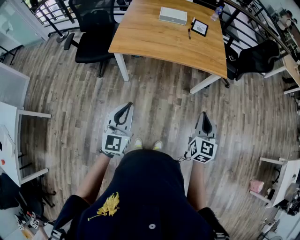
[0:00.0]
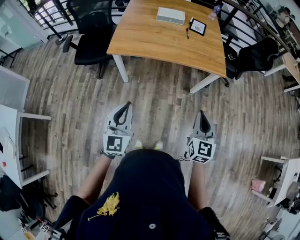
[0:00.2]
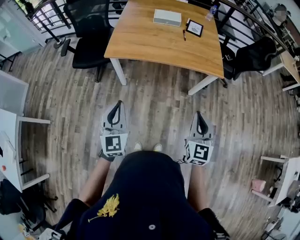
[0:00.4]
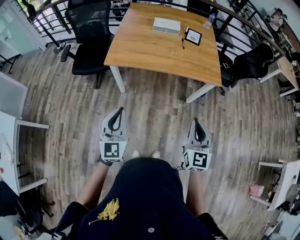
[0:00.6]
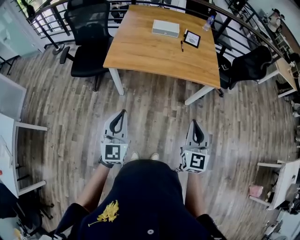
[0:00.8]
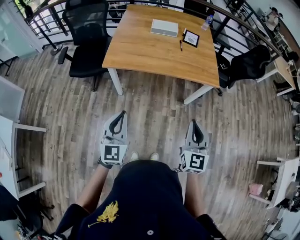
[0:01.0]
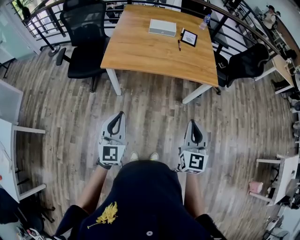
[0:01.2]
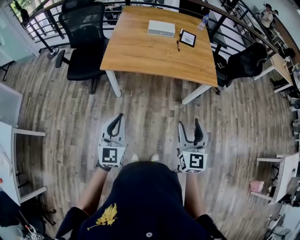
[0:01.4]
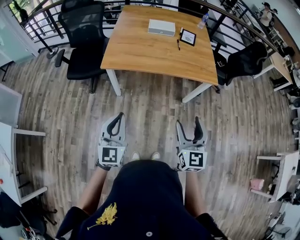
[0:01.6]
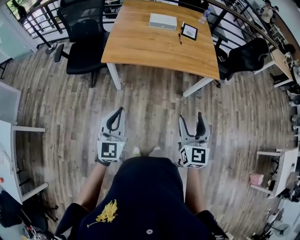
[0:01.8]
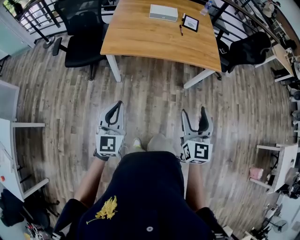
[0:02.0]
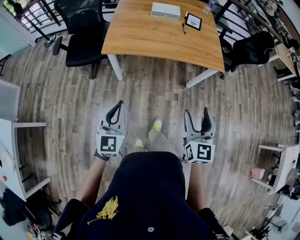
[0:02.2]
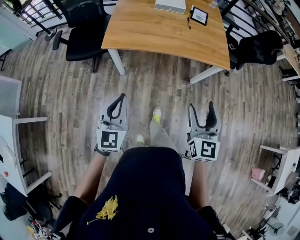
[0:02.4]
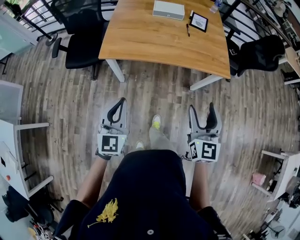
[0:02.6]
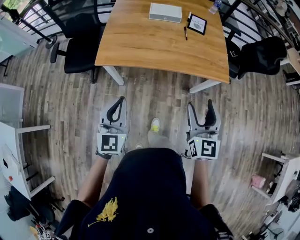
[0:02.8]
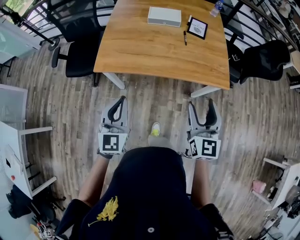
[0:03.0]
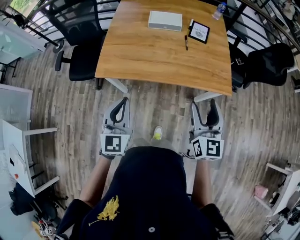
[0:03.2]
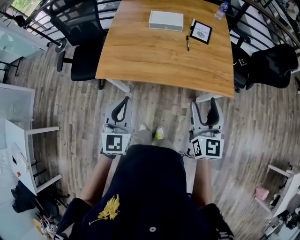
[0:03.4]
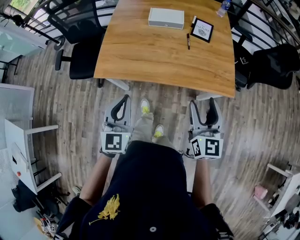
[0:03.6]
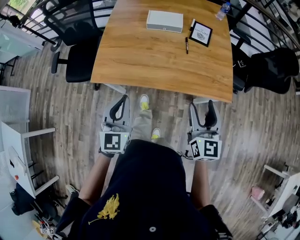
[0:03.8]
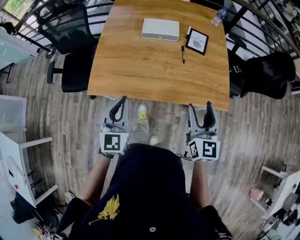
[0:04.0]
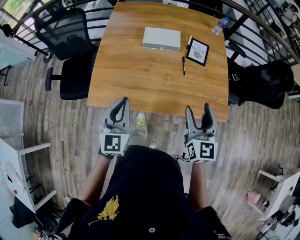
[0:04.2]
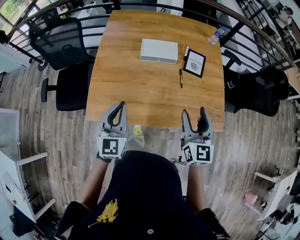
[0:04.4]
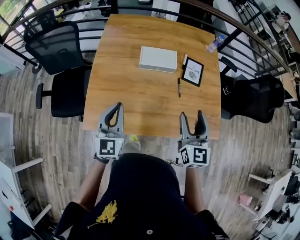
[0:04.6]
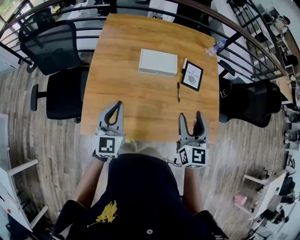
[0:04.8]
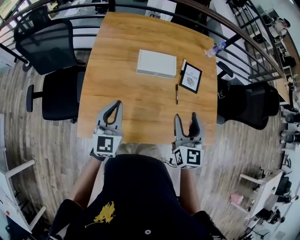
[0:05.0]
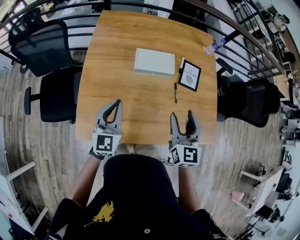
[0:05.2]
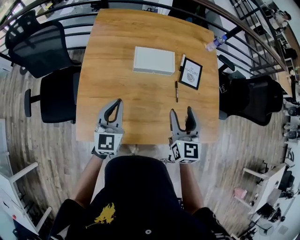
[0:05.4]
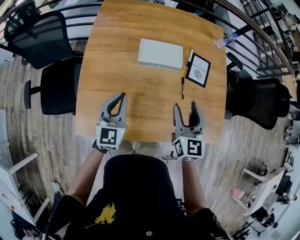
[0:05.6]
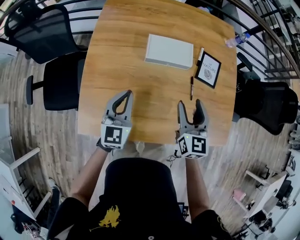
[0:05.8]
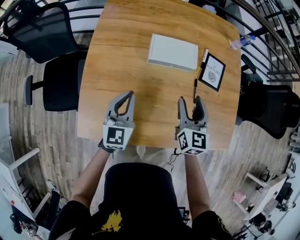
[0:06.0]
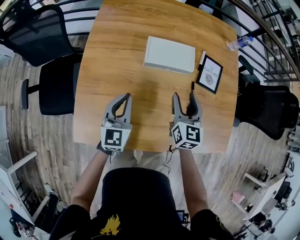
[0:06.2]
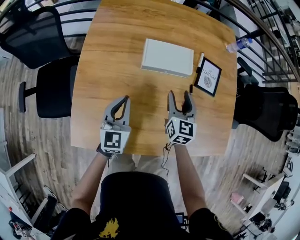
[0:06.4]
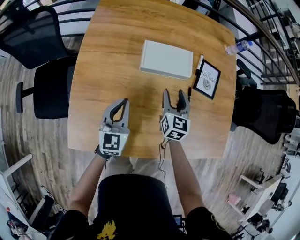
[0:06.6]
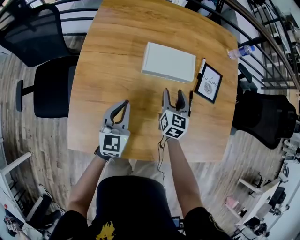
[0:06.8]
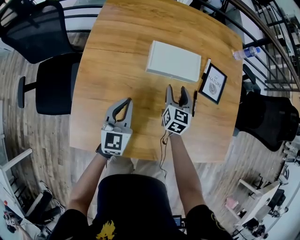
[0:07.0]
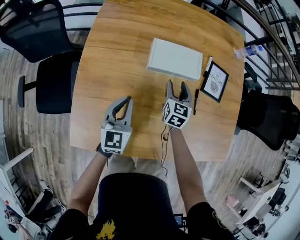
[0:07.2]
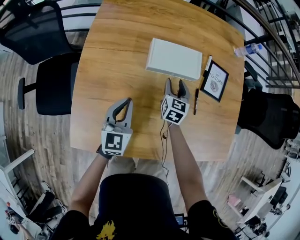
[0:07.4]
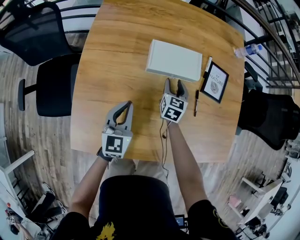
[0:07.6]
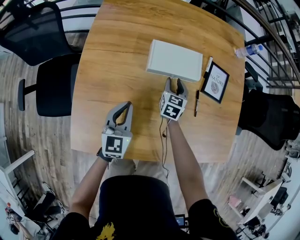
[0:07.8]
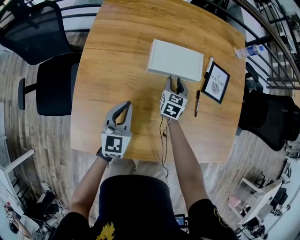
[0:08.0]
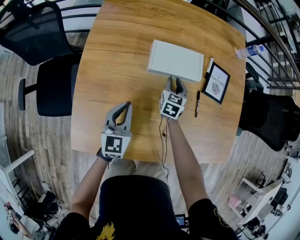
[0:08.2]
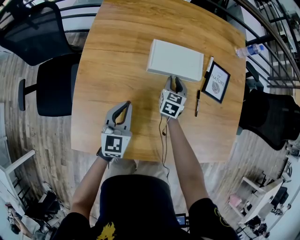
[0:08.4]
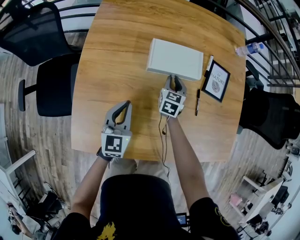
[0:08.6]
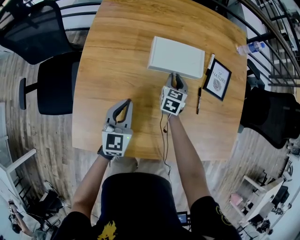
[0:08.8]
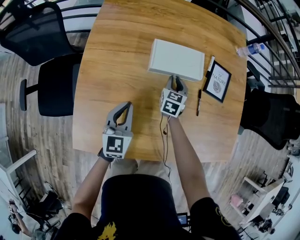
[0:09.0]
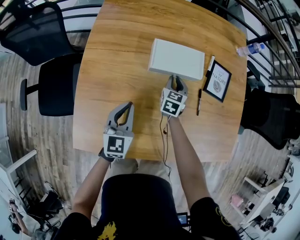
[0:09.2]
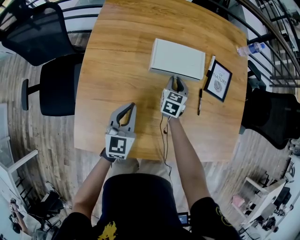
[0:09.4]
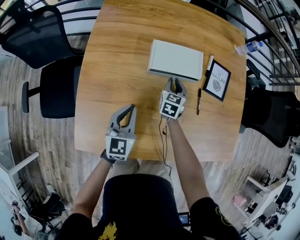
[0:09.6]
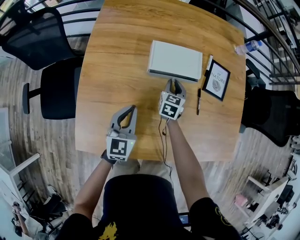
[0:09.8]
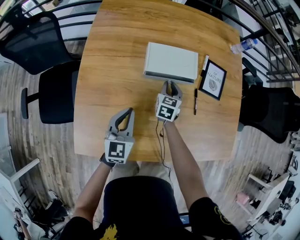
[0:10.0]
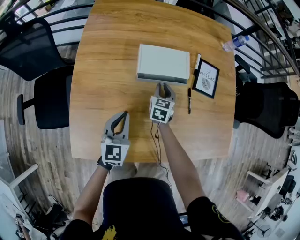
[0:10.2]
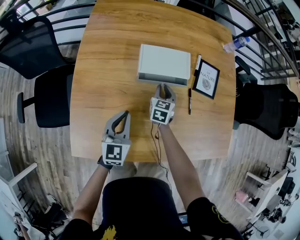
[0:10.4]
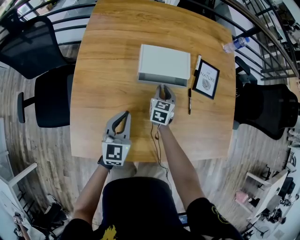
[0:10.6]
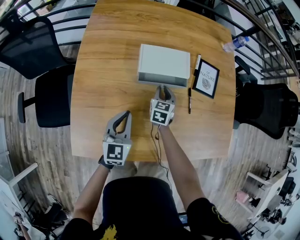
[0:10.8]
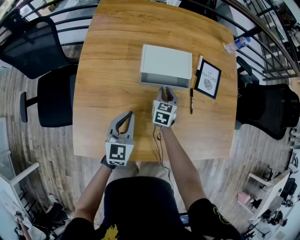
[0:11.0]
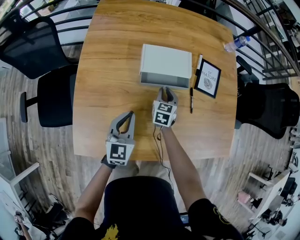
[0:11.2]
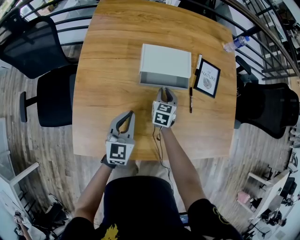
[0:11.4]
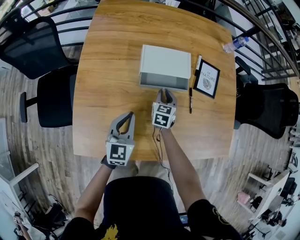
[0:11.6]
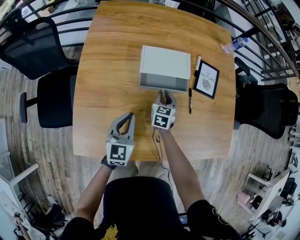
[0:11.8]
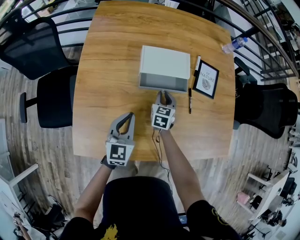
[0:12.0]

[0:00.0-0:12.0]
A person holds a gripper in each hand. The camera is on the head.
0:00.0 to 0:01.6: The right gripper travels to the left by roughly 10 cm, and opens its fingers.
0:01.6 to 0:03.0: The two grippers go roughly 25 cm forward.
0:03.0 to 0:04.4: The two grippers go some 30 cm forward.
0:04.4 to 0:06.0: The left gripper heads forward and downward, covering some 25 cm. Meanwhile the right gripper moves forward, downward and to the left, approximately 25 cm.
0:06.0 to 0:07.6: The right gripper goes about 25 cm downward and forward. Meanwhile the left gripper moves downward, approximately 5 cm.
0:07.6 to 0:09.0: The right gripper closes its fingers.
0:09.0 to 0:10.4: There are only small adjustments of the grippers.
0:10.4 to 0:12.0: The grippers make only small movements.

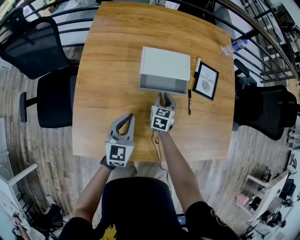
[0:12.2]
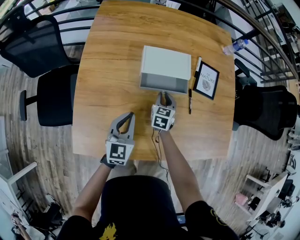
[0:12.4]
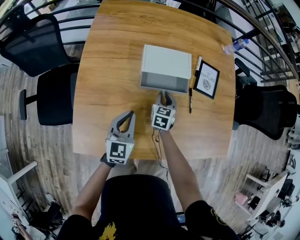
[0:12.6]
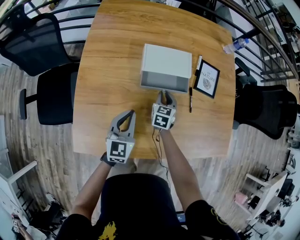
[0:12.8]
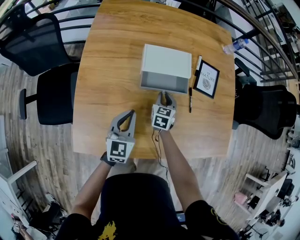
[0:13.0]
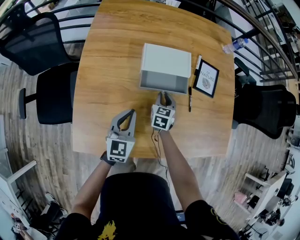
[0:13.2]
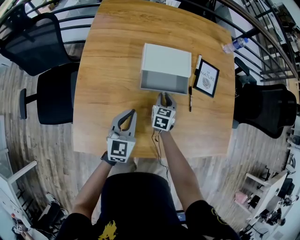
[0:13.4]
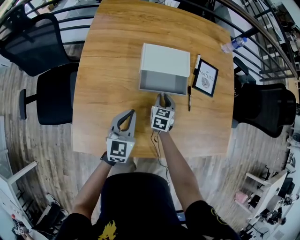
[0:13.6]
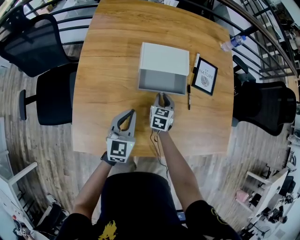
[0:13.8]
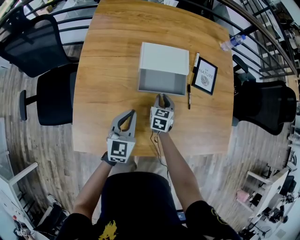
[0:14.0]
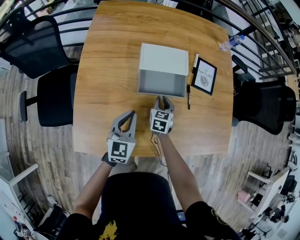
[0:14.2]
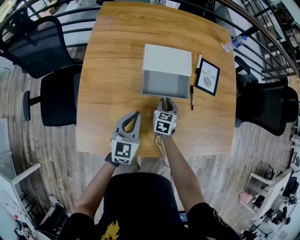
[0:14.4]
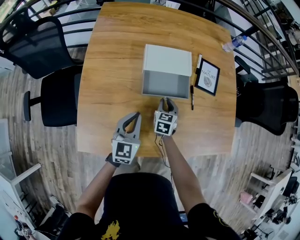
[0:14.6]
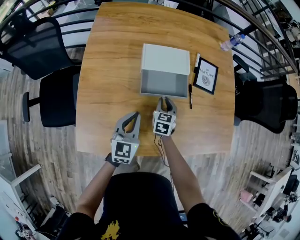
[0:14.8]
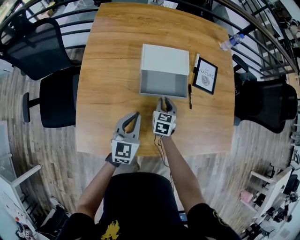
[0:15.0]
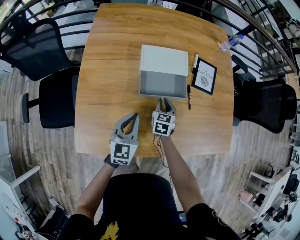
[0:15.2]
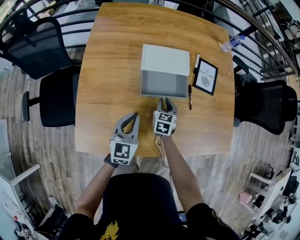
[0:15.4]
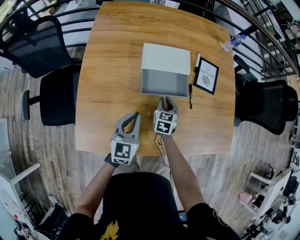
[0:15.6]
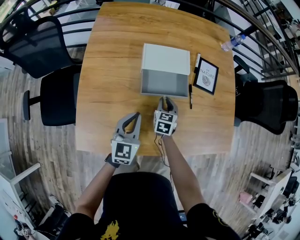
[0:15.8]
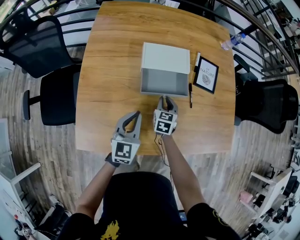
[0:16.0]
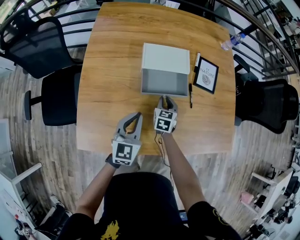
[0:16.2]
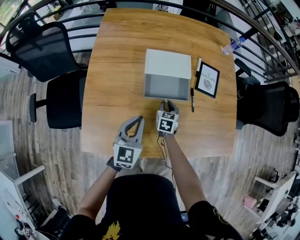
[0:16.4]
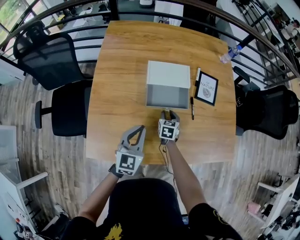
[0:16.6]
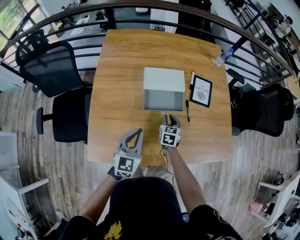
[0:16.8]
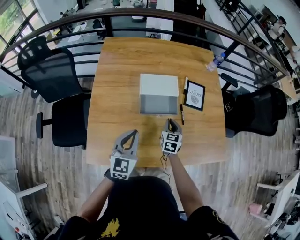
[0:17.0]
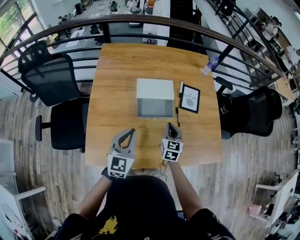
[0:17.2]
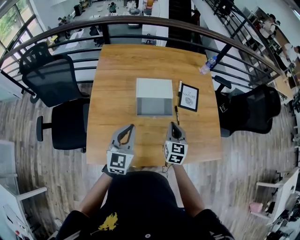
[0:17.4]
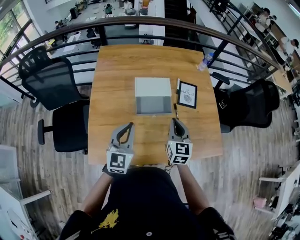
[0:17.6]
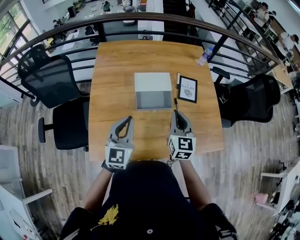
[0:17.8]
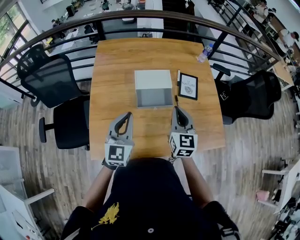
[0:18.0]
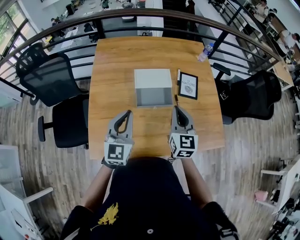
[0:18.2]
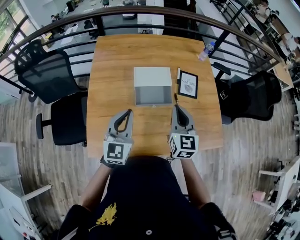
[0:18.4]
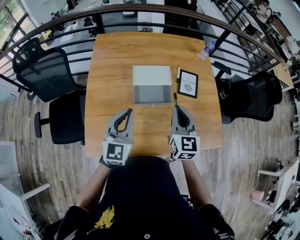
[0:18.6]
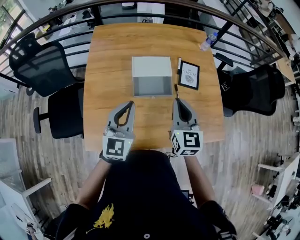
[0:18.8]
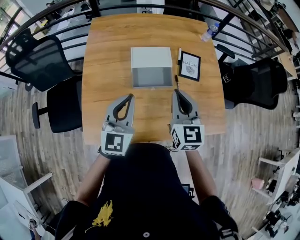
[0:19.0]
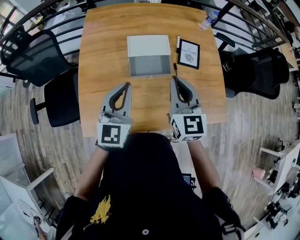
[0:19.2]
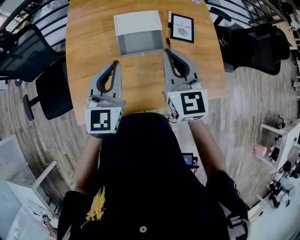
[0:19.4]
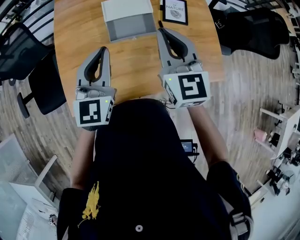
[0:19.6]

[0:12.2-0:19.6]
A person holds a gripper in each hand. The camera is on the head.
0:12.2 to 0:15.2: The grippers stay close to where they were, moving slightly.
0:15.2 to 0:16.6: The left gripper goes approximately 5 cm upward.
0:16.6 to 0:18.2: The right gripper moves upward, approximately 35 cm, points its fingers about 30 degrees further upward, and closes. Meanwhile the left gripper heads upward, covering about 15 cm.
0:18.2 to 0:19.6: There are only small adjustments of the grippers.

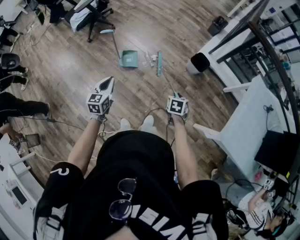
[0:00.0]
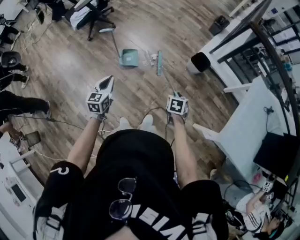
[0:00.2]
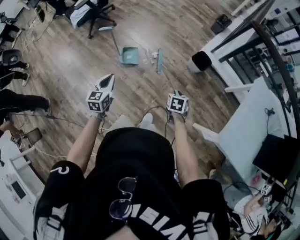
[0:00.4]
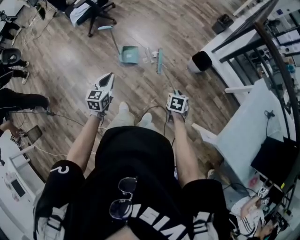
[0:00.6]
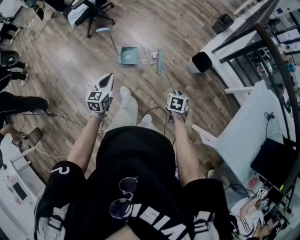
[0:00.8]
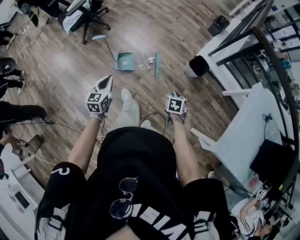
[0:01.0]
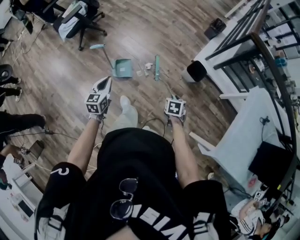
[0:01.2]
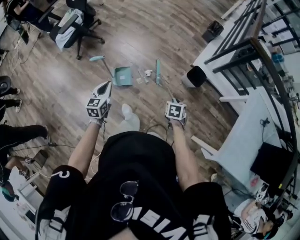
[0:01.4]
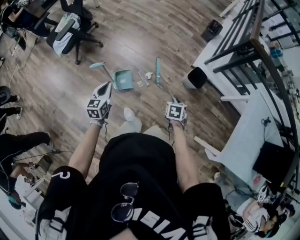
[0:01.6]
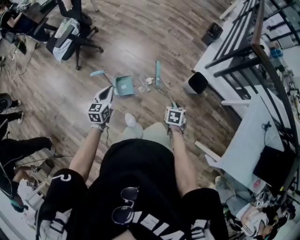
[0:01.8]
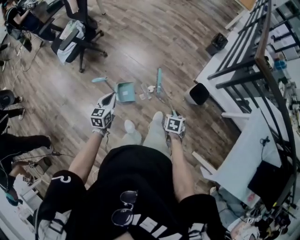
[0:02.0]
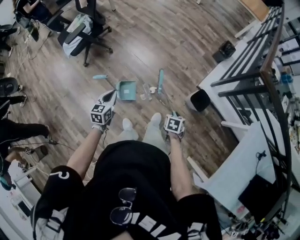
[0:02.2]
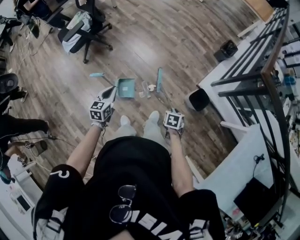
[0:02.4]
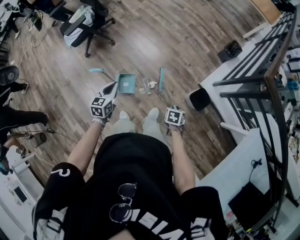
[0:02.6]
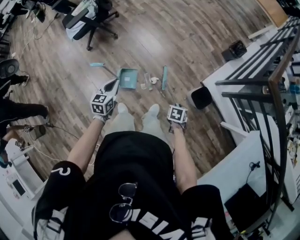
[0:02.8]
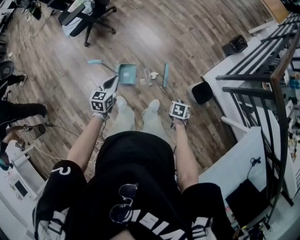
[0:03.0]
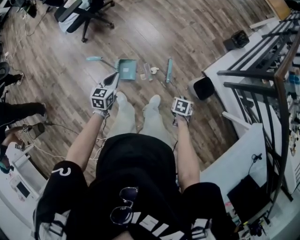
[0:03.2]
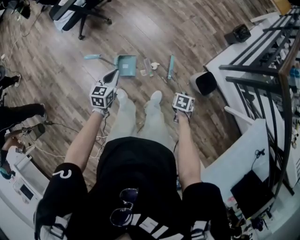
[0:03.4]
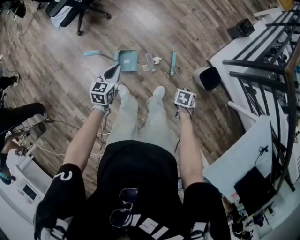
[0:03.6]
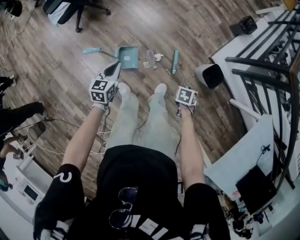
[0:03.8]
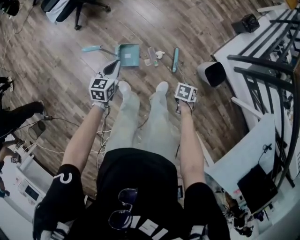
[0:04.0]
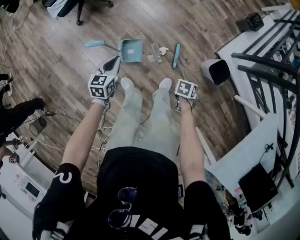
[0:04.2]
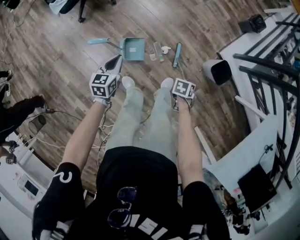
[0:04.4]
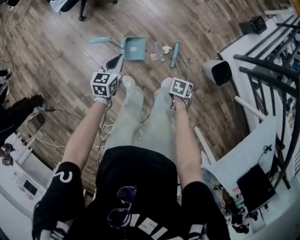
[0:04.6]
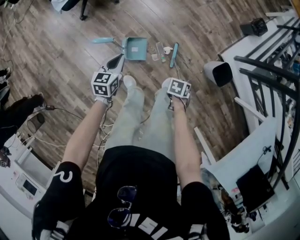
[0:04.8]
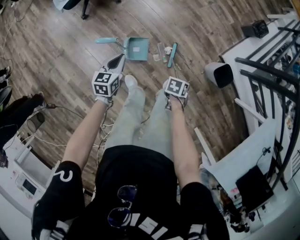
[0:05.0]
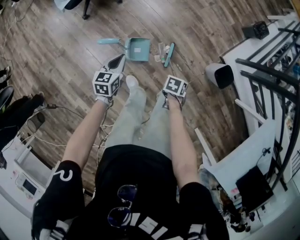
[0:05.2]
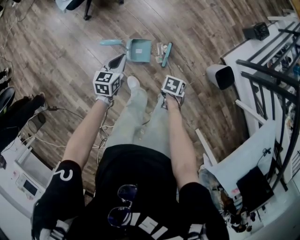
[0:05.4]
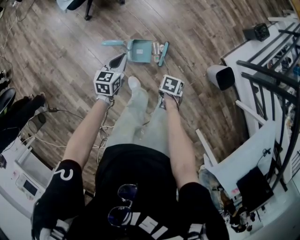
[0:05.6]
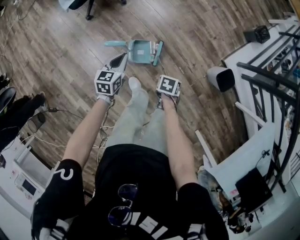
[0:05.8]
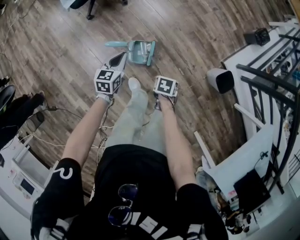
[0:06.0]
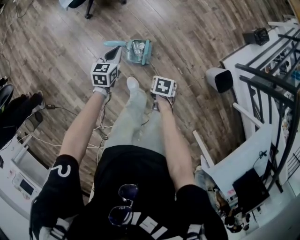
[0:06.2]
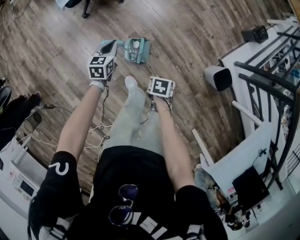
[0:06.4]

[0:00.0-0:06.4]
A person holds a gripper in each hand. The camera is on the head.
0:00.0 to 0:01.6: The two grippers go roughly 25 cm forward.
0:01.6 to 0:03.2: The left gripper moves about 15 cm, while the right gripper changes place by approximately 20 cm.
0:03.2 to 0:04.8: The left gripper ends up approximately 15 cm from where it was, while the right gripper moves some 20 cm.
0:04.8 to 0:06.4: The right gripper moves about 25 cm, and swivels roughly 30 degrees. The left gripper changes place by about 15 cm.
